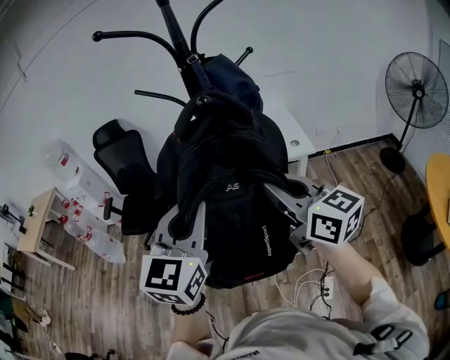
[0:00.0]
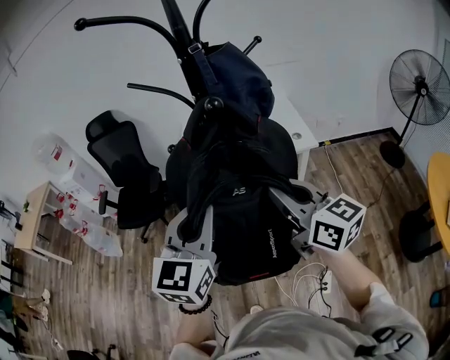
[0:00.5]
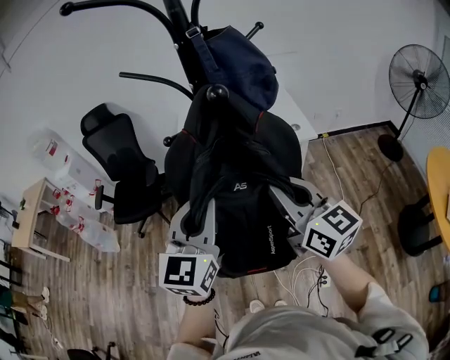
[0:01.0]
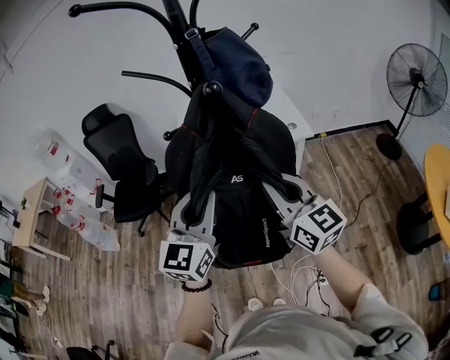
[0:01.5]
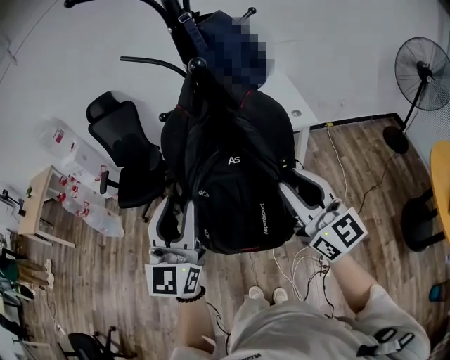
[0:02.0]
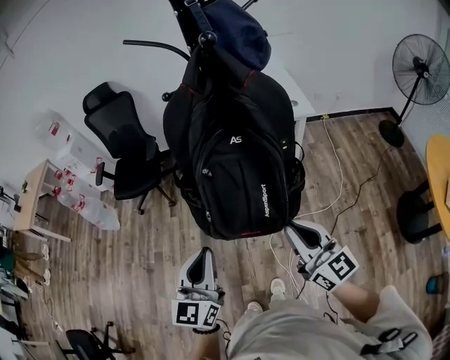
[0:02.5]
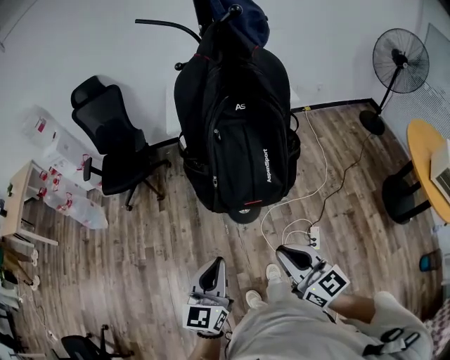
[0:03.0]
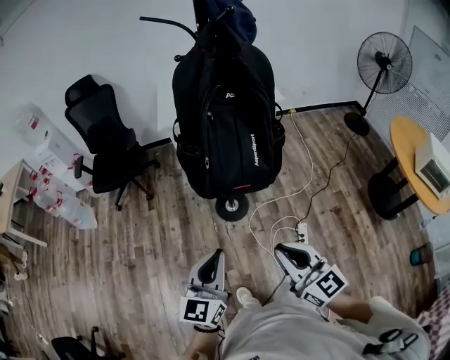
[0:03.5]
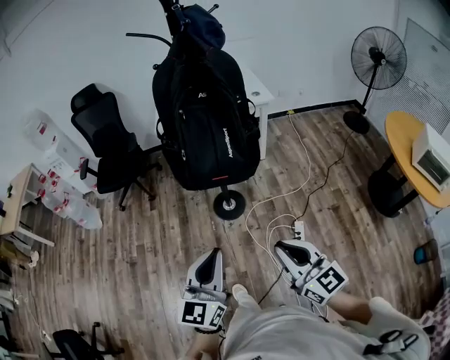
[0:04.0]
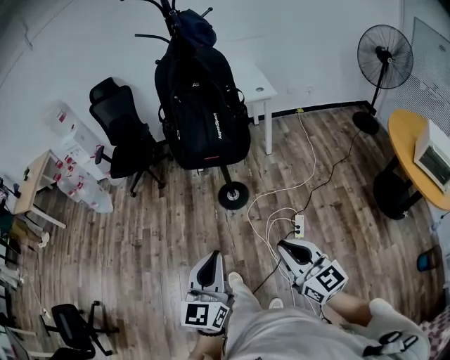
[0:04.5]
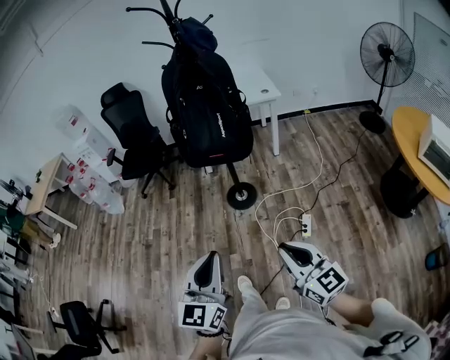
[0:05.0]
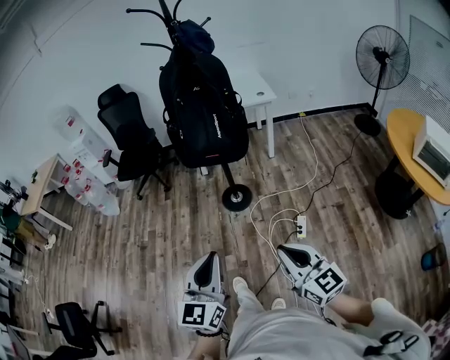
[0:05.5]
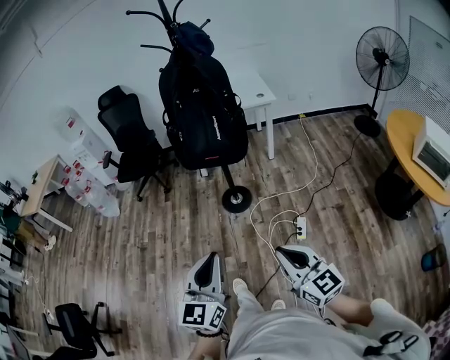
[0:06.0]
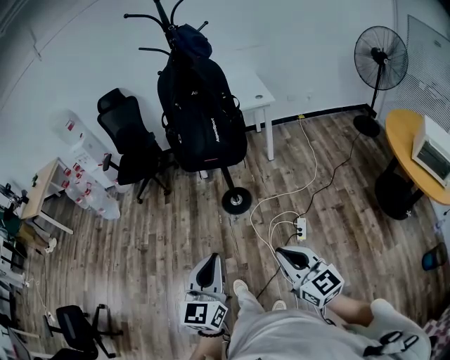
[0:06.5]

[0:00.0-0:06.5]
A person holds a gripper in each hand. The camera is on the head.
0:00.0 to 0:02.0: The right gripper moves downward, about 5 cm, and opens up, while the left gripper travels downward and to the left by some 10 cm, and opens.
0:02.0 to 0:04.5: Both grippers are carried backward, about 50 cm. The left gripper closes its fingers; the right gripper closes.
0:04.5 to 0:06.5: The grippers both shift backward by about 5 cm.

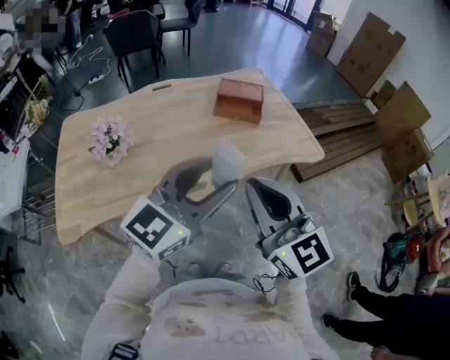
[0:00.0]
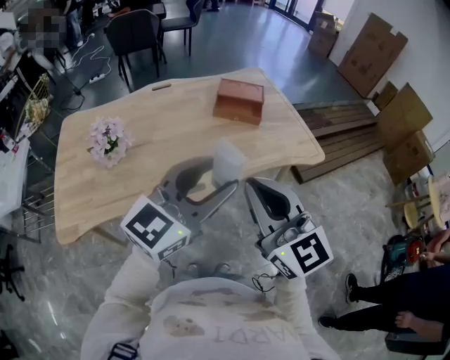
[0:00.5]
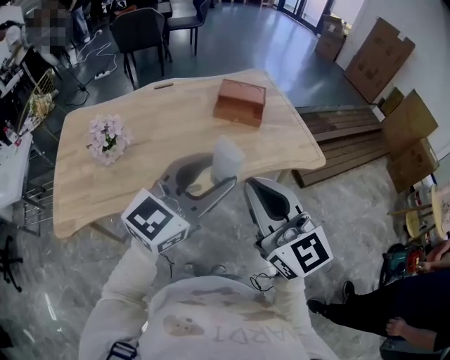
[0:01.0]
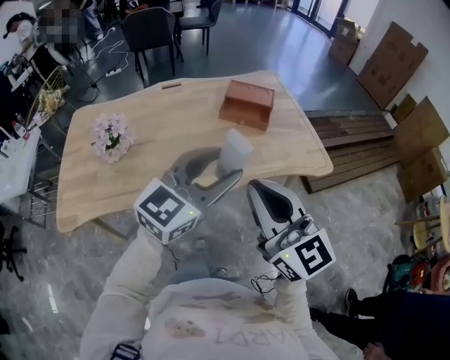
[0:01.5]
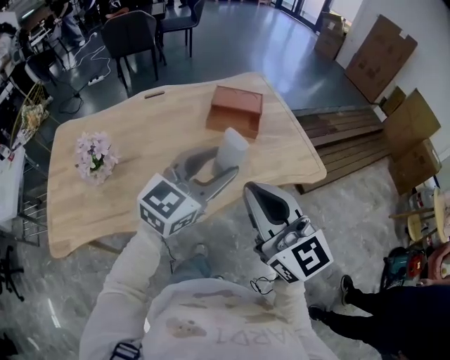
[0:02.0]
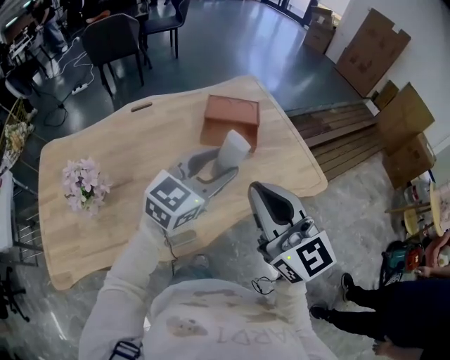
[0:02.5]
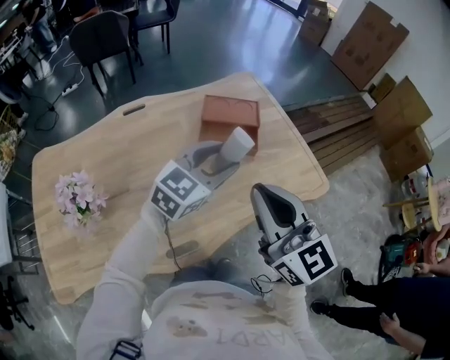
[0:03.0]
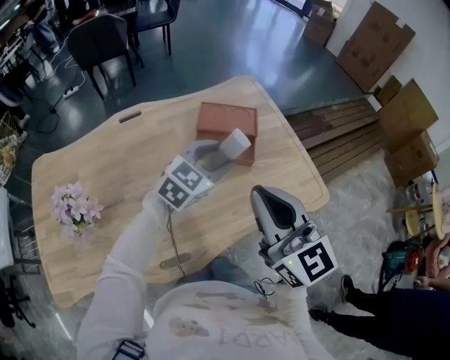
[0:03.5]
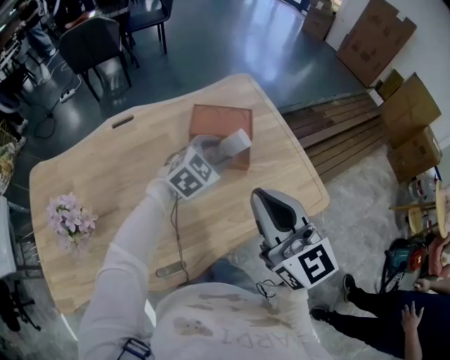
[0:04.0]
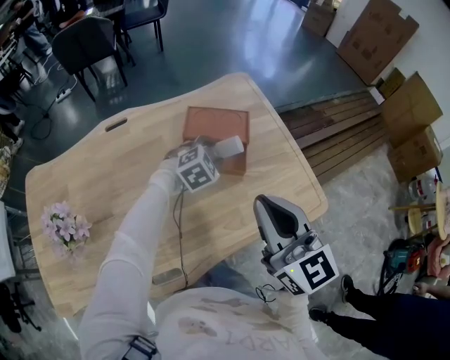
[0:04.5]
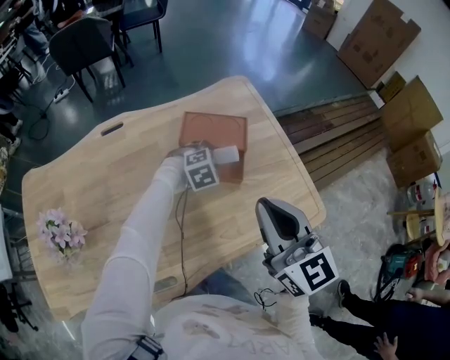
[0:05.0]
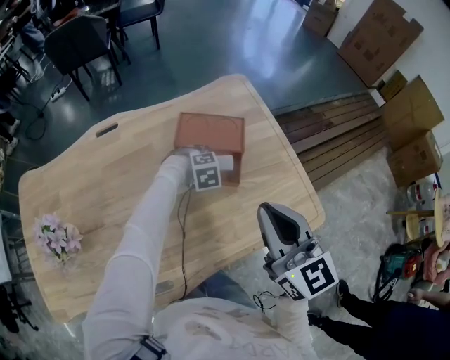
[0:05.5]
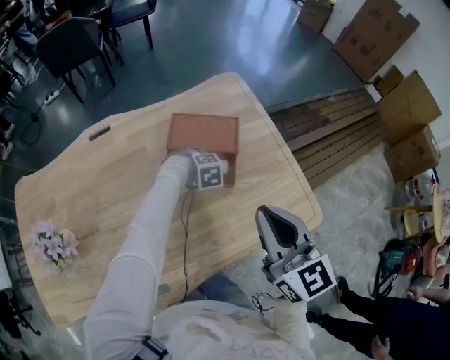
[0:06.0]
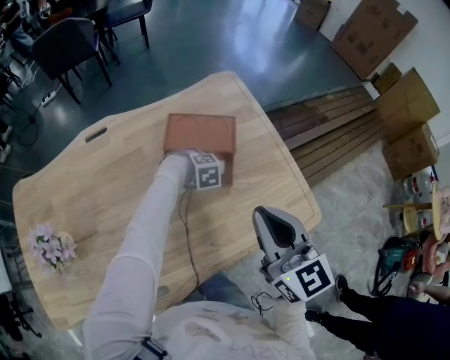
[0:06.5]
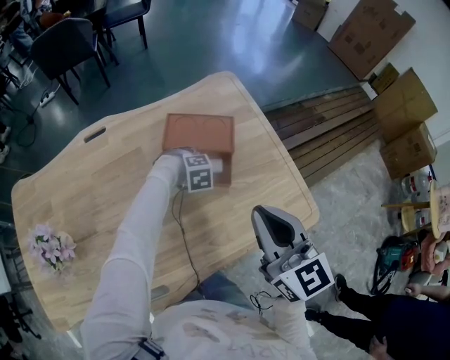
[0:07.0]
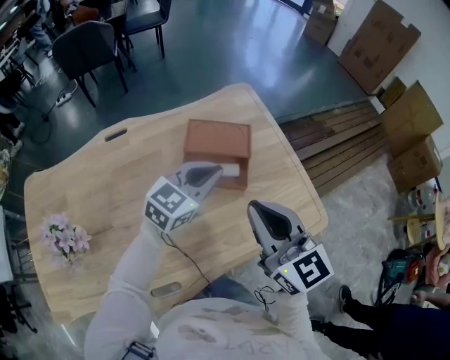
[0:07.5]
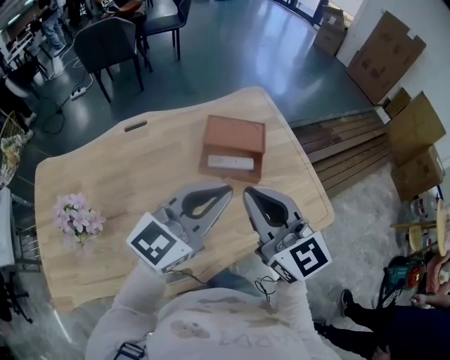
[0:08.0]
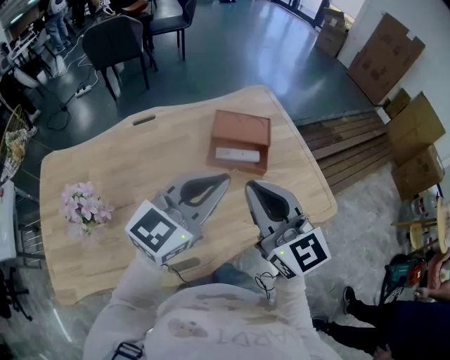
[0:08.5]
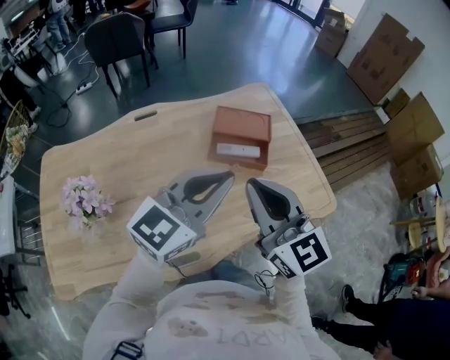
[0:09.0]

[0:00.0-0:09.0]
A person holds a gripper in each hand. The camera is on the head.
0:00.0 to 0:02.0: The right gripper moves forward and to the right, roughly 10 cm; the left gripper heads forward, covering some 15 cm.
0:02.0 to 0:04.5: The left gripper is displaced forward and downward by approximately 50 cm, and points its fingers approximately 40 degrees further downward, while the right gripper heads forward, covering approximately 30 cm.
0:04.5 to 0:07.0: The left gripper shifts about 10 cm downward, and changes its angle by about 30 degrees, while the right gripper ends up about 10 cm from where it was.
0:07.0 to 0:09.0: The right gripper changes place by approximately 20 cm, while the left gripper shifts roughly 35 cm upward, tips its fingers upward by roughly 70 degrees, and closes its fingers.

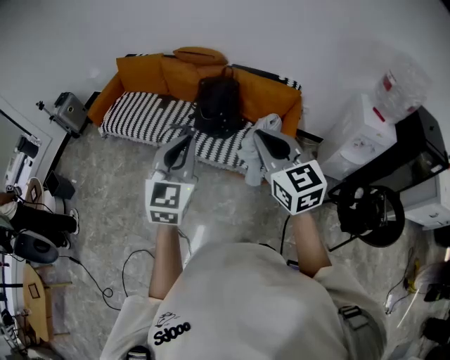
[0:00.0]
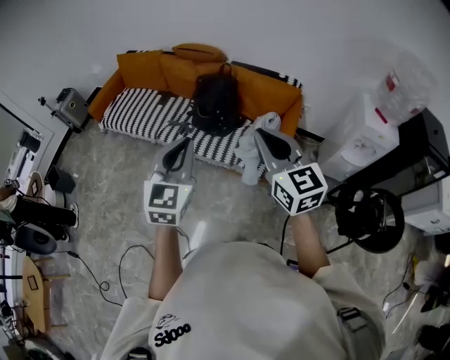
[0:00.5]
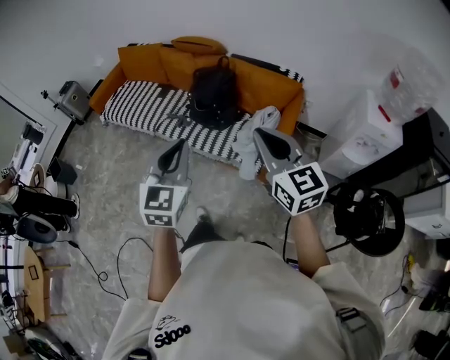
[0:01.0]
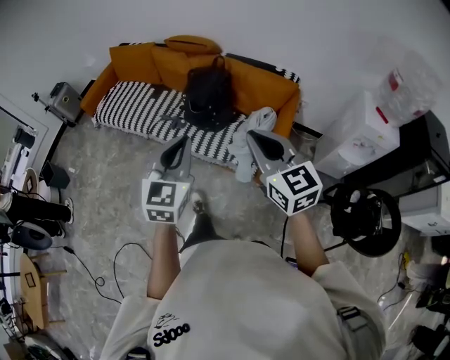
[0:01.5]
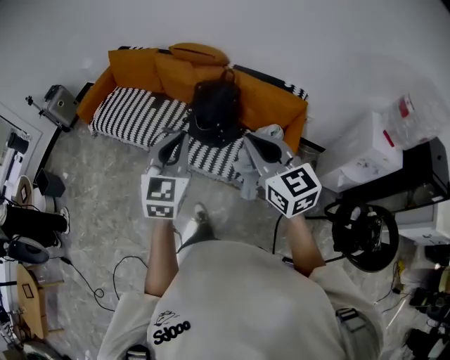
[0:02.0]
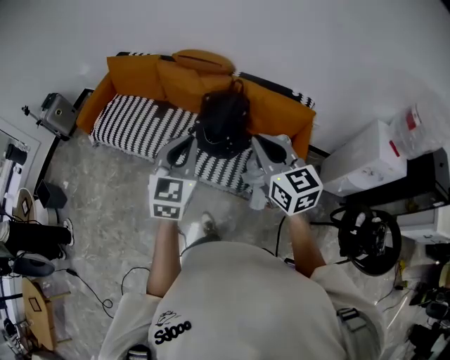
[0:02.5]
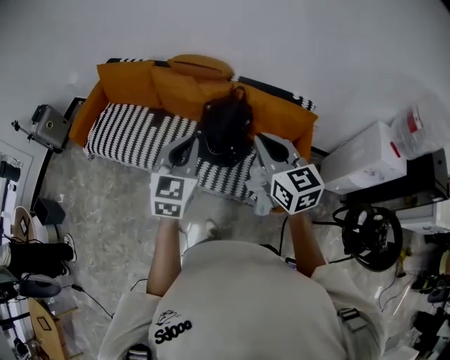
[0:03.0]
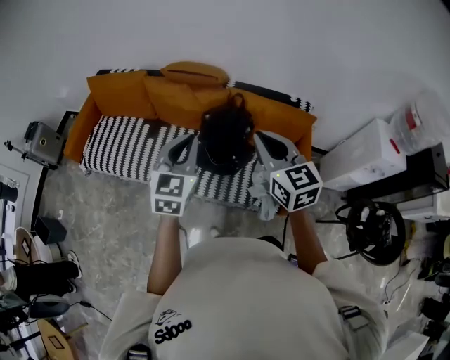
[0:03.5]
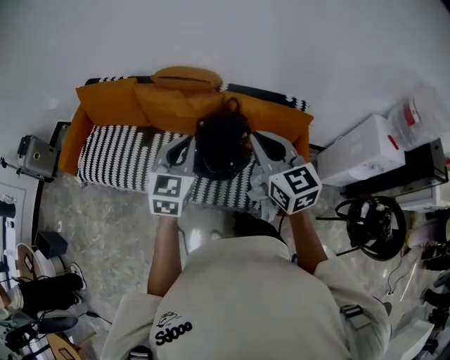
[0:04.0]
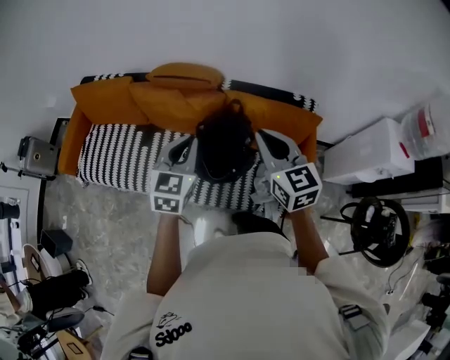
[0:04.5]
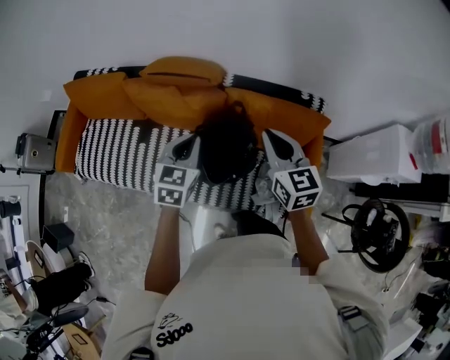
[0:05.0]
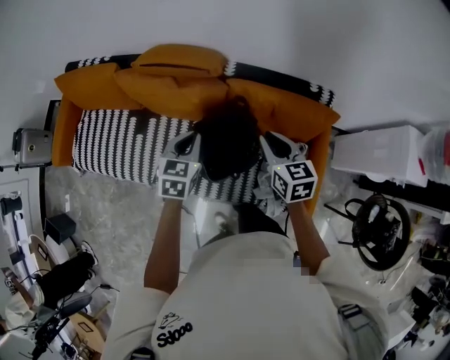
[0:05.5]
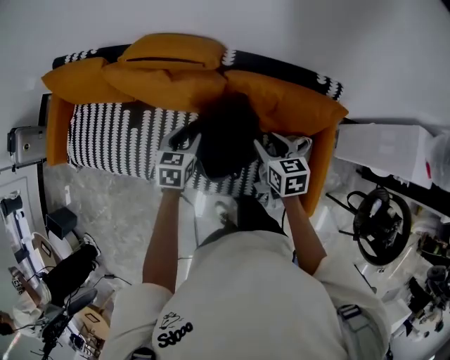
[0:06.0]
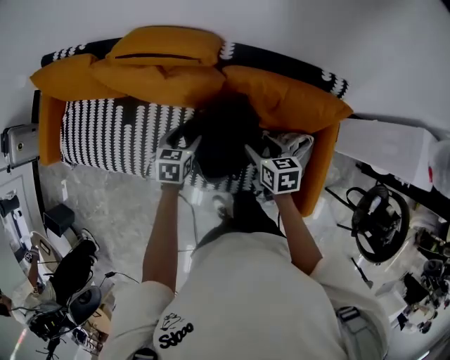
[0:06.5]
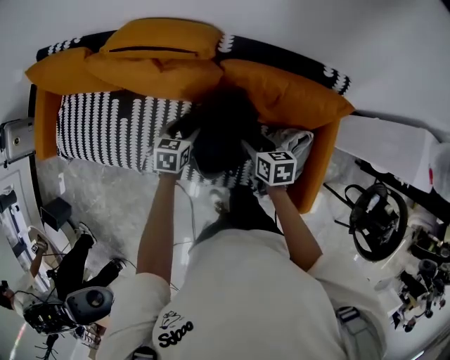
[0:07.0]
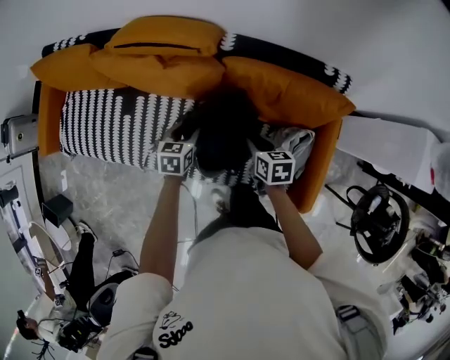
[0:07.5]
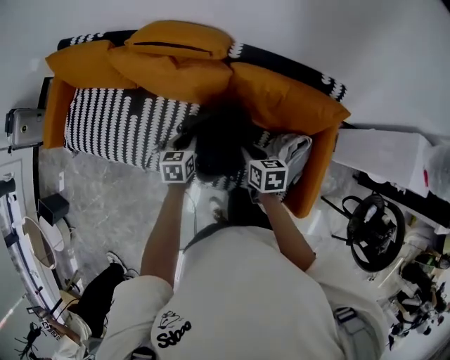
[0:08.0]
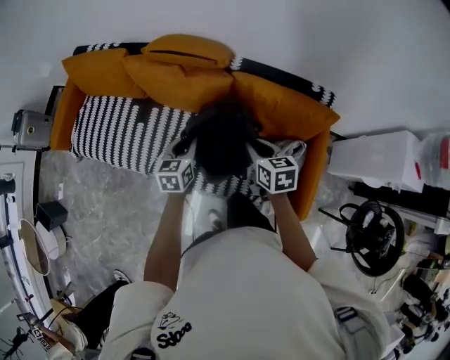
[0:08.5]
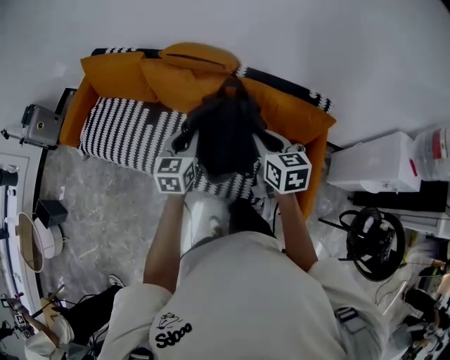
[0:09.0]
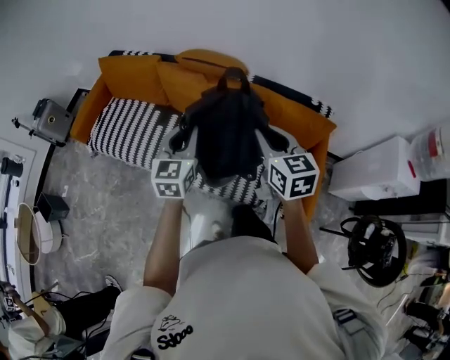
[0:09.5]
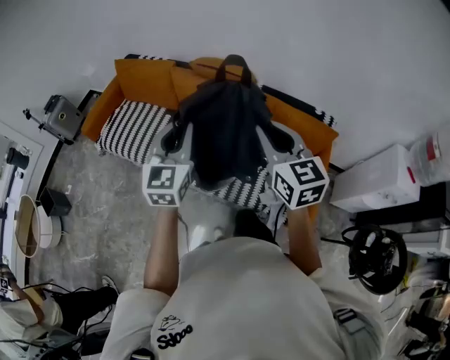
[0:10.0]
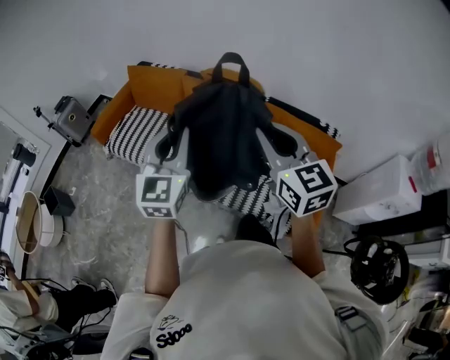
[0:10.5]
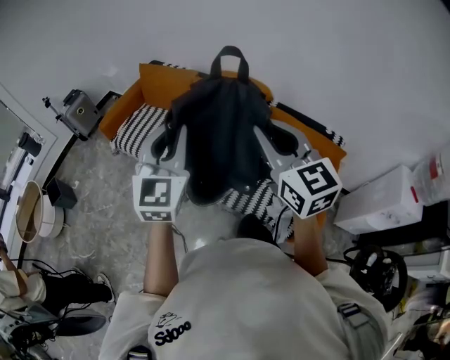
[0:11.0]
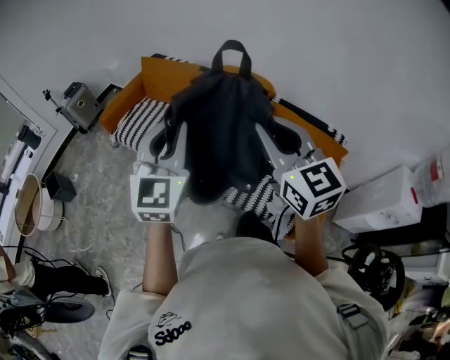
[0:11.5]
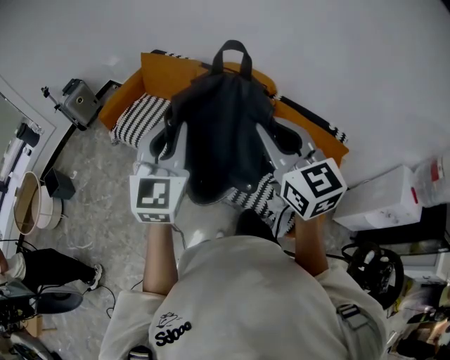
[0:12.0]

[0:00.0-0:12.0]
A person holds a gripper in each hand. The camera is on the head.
0:00.0 to 0:02.0: The two grippers go some 15 cm forward.
0:02.0 to 0:04.0: The grippers both shift forward by roughly 30 cm.
0:04.0 to 0:06.0: The two grippers go approximately 40 cm downward and forward. The left gripper tilts its fingers roughly 30 degrees downward, and opens. Meanwhile the right gripper angles its fingers downward, by roughly 30 degrees, and opens its fingers.
0:06.0 to 0:08.0: The right gripper is displaced downward, backward and to the left by approximately 10 cm, and closes. Meanwhile the left gripper travels downward by about 5 cm, and closes.
0:08.0 to 0:10.0: Both grippers travel together upward and backward, roughly 50 cm. The left gripper tilts its fingers roughly 40 degrees upward; the right gripper angles its fingers upward, by some 40 degrees.
0:10.0 to 0:12.0: The right gripper goes approximately 10 cm to the left and upward, while the left gripper heads to the left, upward and backward, covering approximately 15 cm.
